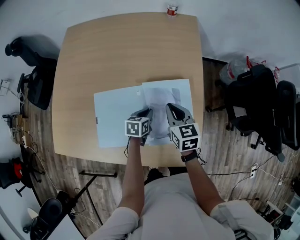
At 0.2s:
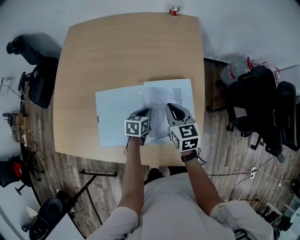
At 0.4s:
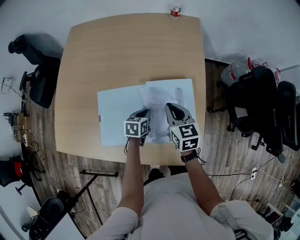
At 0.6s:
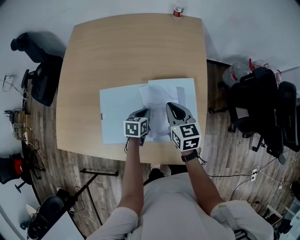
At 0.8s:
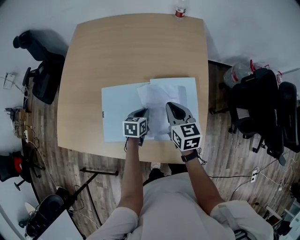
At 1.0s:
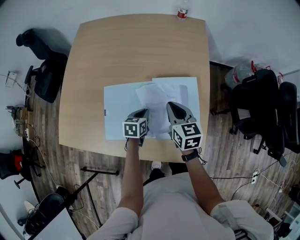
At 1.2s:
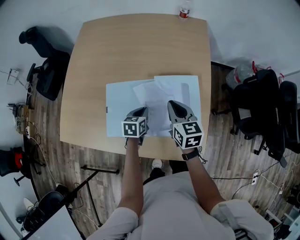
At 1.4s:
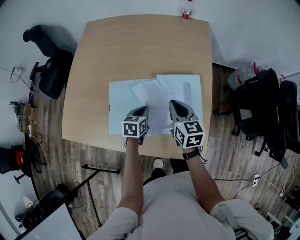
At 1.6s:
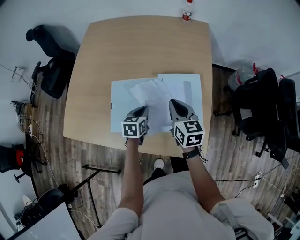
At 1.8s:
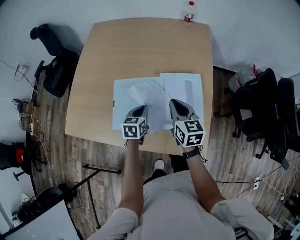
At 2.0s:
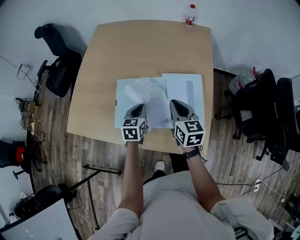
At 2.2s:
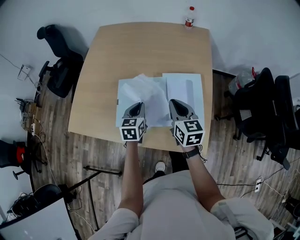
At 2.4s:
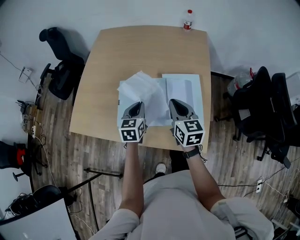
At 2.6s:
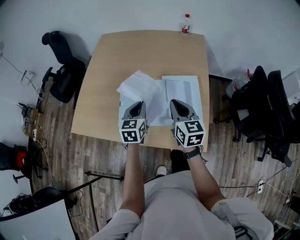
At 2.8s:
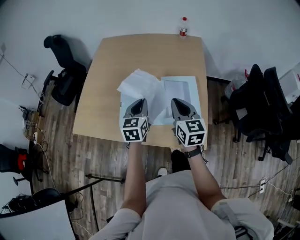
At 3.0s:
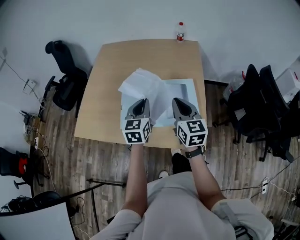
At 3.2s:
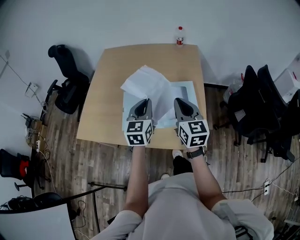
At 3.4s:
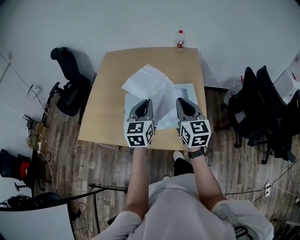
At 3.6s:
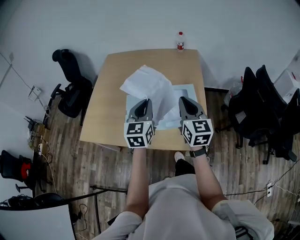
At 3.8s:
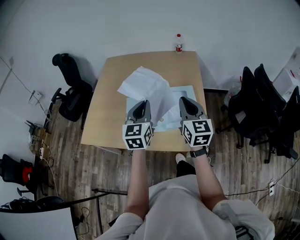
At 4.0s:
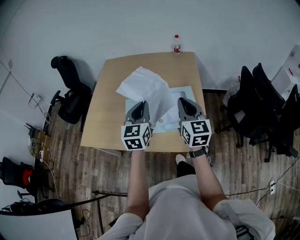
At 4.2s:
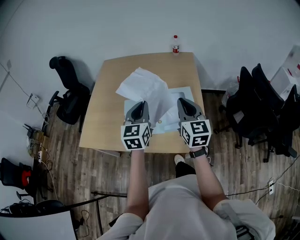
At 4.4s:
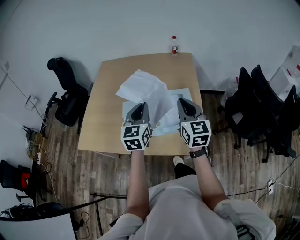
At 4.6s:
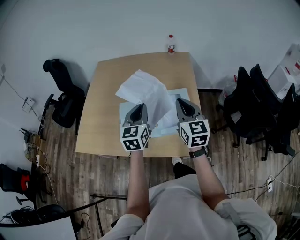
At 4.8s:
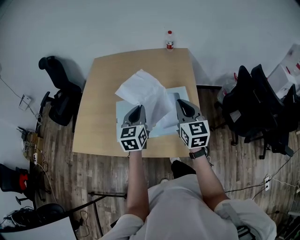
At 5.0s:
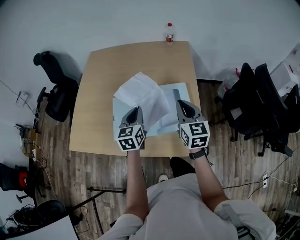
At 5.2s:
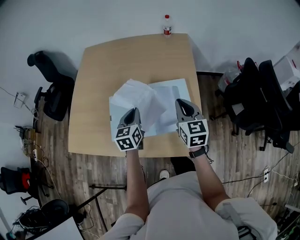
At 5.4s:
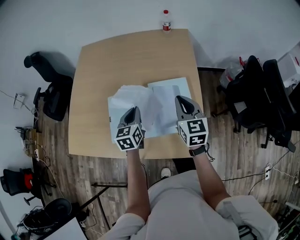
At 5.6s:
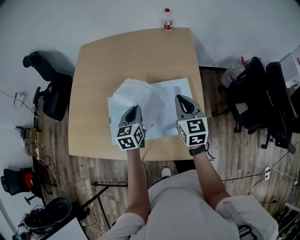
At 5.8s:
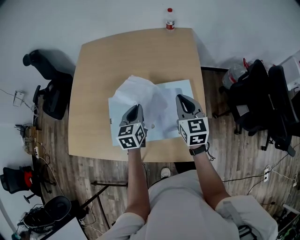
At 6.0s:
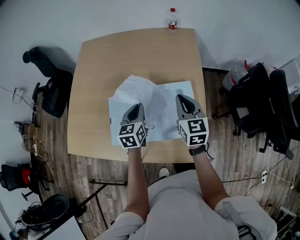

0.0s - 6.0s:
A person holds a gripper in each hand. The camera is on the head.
0.0s - 1.6s: The right gripper heads backward and upward, covering approximately 10 cm. The left gripper is displaced to the left, upward and backward by roughly 10 cm.
1.6s - 3.0s: The left gripper heads upward, covering some 20 cm, and turns by roughly 30 degrees. The right gripper travels upward and backward by roughly 15 cm.
3.0s - 4.4s: The two grippers go about 5 cm upward.
4.4s - 6.0s: The right gripper moves forward and downward, approximately 20 cm; the left gripper goes some 20 cm downward and forward, and rotates about 20 degrees.

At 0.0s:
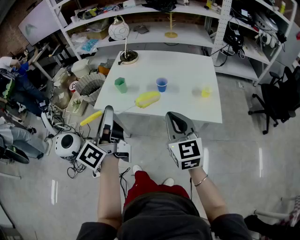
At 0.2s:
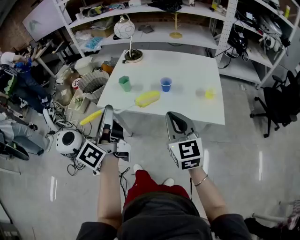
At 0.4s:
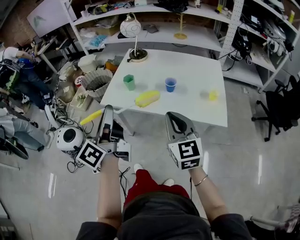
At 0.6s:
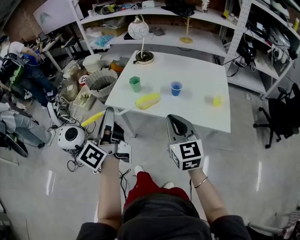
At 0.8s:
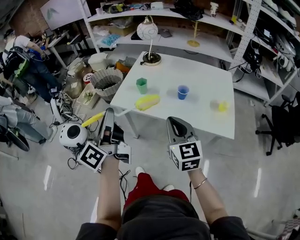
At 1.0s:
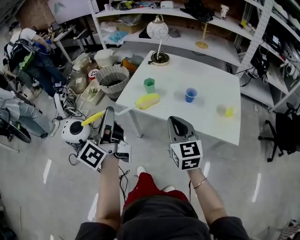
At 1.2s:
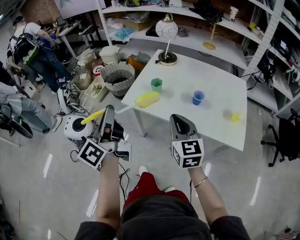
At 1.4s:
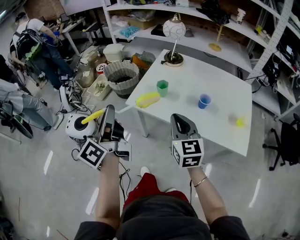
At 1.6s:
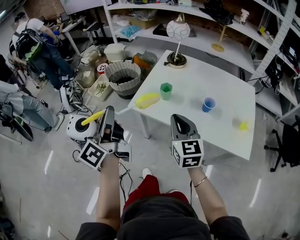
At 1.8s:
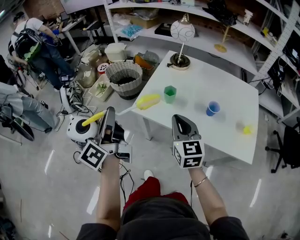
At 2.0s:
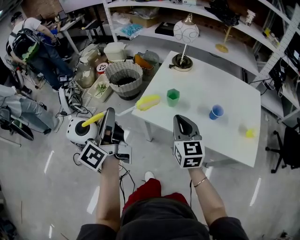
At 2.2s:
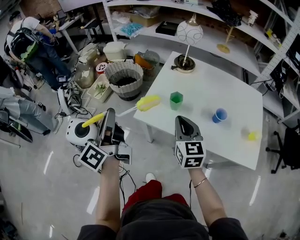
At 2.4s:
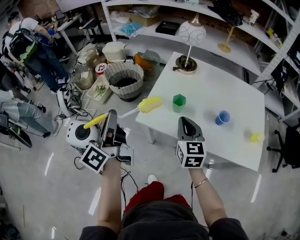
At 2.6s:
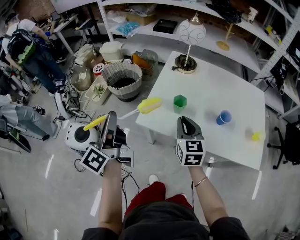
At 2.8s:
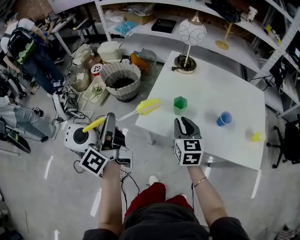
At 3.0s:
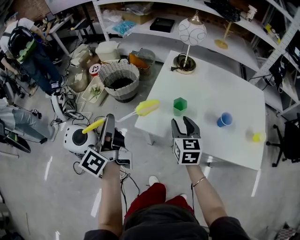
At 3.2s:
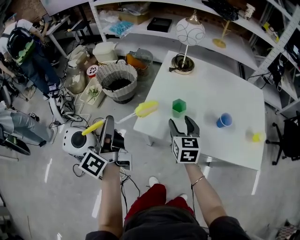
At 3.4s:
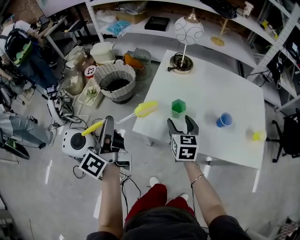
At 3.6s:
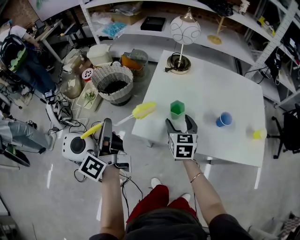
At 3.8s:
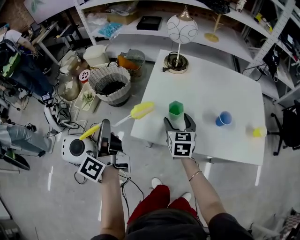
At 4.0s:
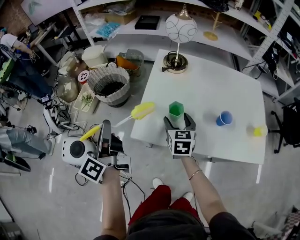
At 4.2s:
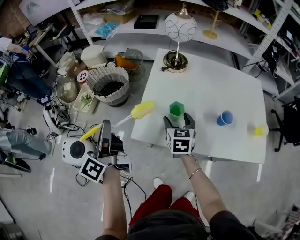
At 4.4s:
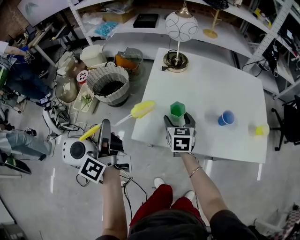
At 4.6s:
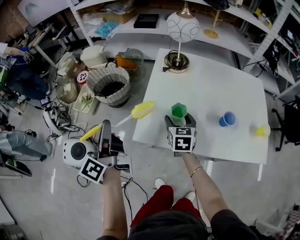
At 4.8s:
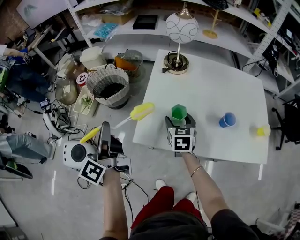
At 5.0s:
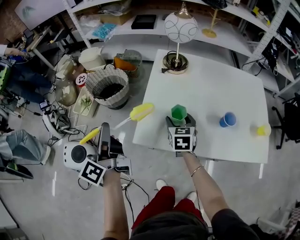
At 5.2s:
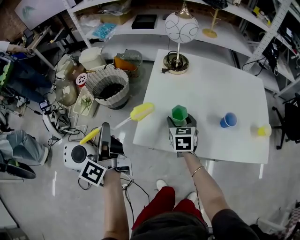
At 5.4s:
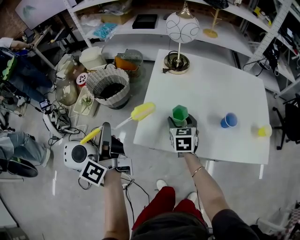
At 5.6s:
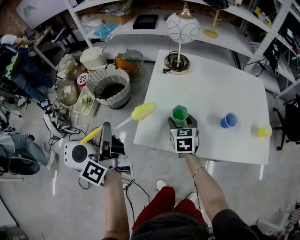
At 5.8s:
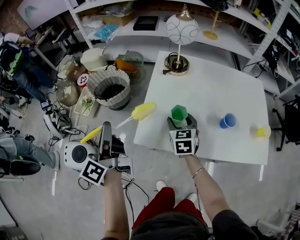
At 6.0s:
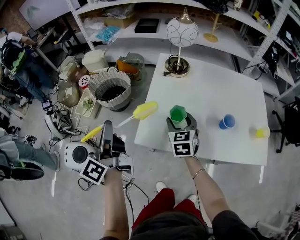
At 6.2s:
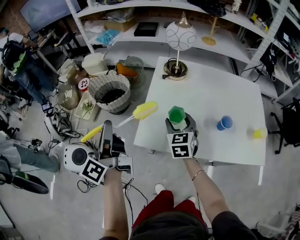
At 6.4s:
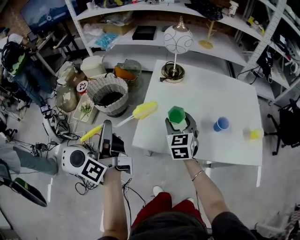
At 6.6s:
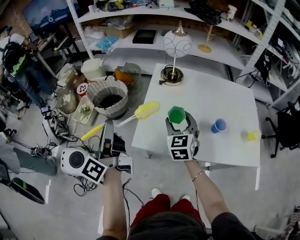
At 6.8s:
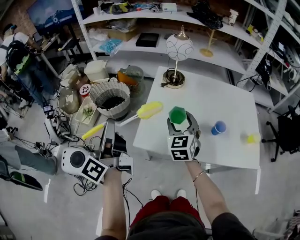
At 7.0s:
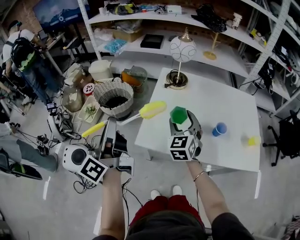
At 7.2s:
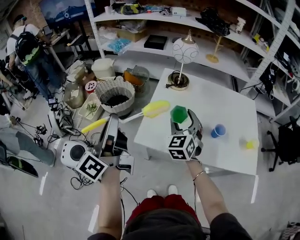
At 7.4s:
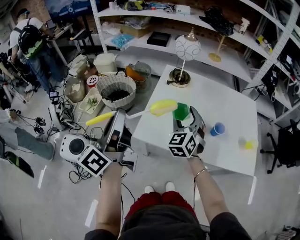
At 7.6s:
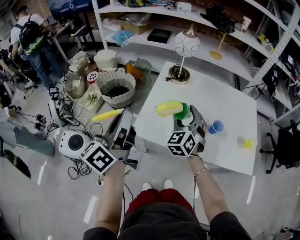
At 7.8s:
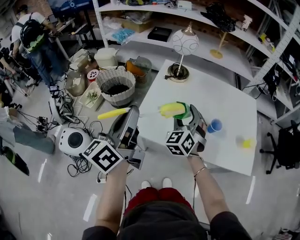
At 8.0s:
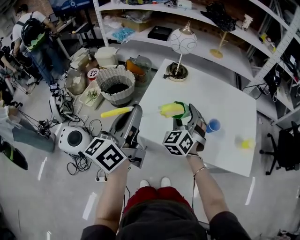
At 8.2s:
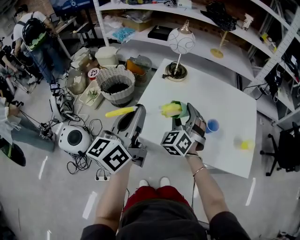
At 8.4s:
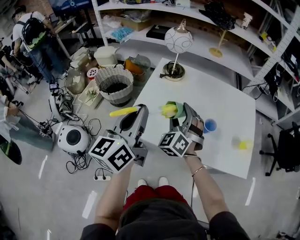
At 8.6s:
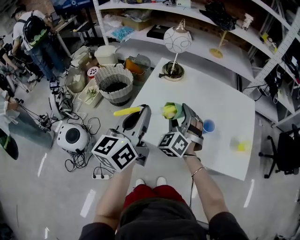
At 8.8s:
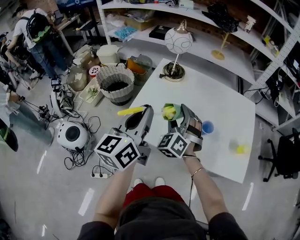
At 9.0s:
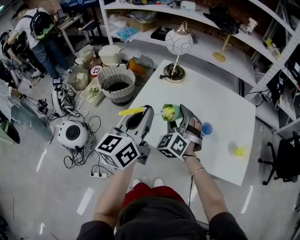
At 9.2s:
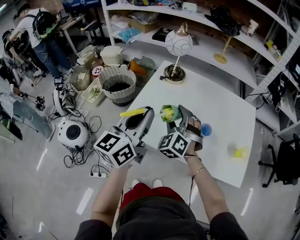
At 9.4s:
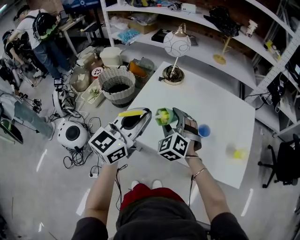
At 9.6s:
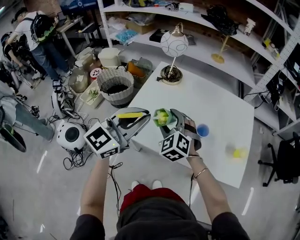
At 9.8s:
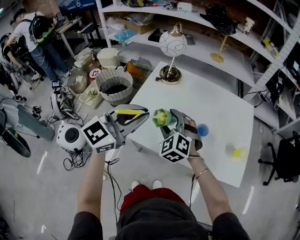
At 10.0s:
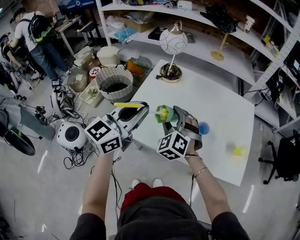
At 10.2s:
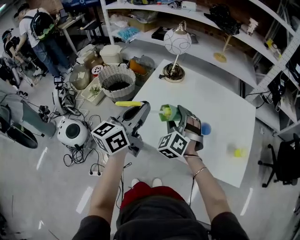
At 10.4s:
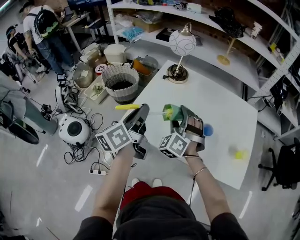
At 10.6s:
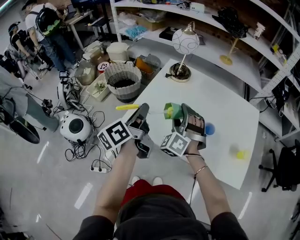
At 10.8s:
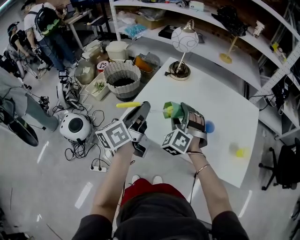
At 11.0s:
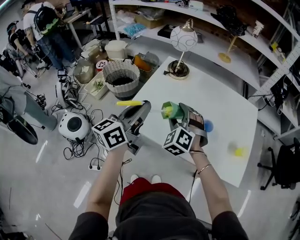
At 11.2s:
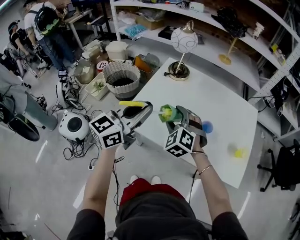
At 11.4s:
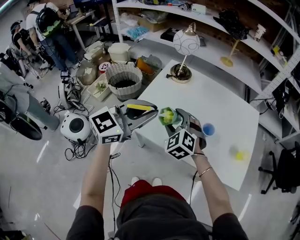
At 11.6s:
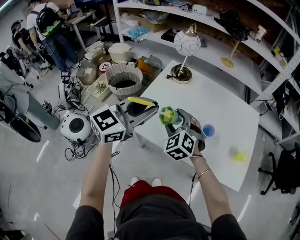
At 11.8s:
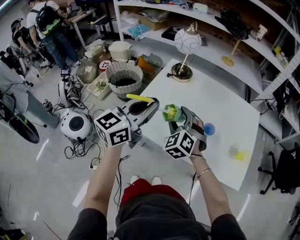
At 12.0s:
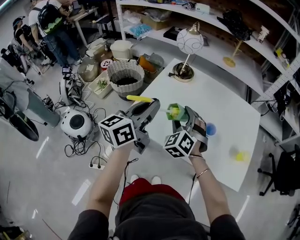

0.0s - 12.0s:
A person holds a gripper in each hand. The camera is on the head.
0.0s - 1.6s: The grippers both shift to the left and forward by some 20 cm.
1.6s - 3.0s: The left gripper travels forward, to the left and downward by roughly 15 cm. Meanwhile the right gripper is displaced forward and downward by about 20 cm, and opens up.
3.0s - 4.4s: The left gripper is displaced forward by about 5 cm, while the right gripper is displaced downward and forward by some 10 cm, and opens.
4.4s - 6.0s: The grippers stay close to where they were, moving slightly.
6.0s - 7.6s: The left gripper heads upward, to the right and backward, covering approximately 15 cm. The right gripper heads upward, covering about 10 cm, and swivels approximately 30 degrees.
7.6s - 9.0s: The left gripper goes roughly 15 cm to the right, and swivels about 30 degrees.
9.0s - 10.4s: The left gripper heads downward, covering approximately 5 cm, and rotates some 20 degrees.
10.4s - 12.0s: The left gripper changes its angle by some 20 degrees.

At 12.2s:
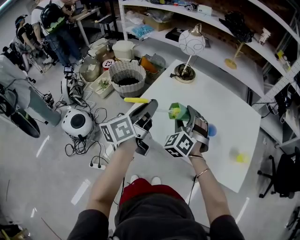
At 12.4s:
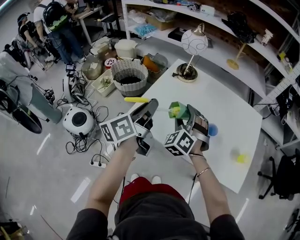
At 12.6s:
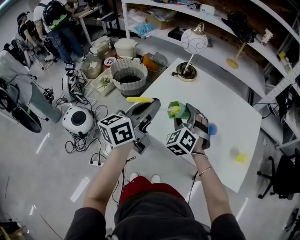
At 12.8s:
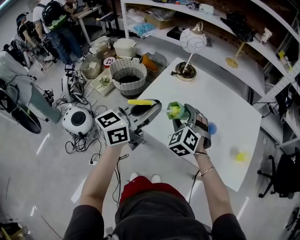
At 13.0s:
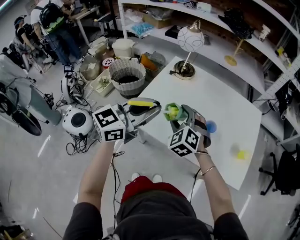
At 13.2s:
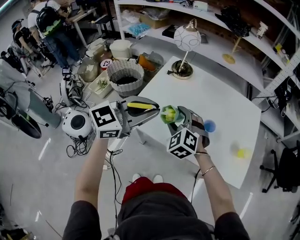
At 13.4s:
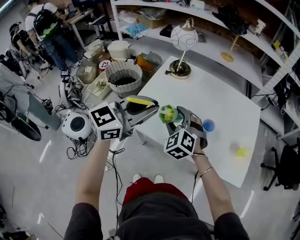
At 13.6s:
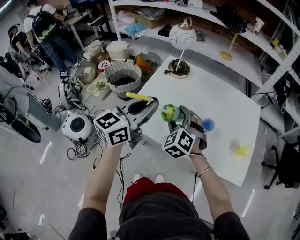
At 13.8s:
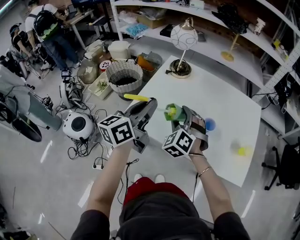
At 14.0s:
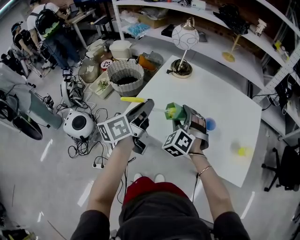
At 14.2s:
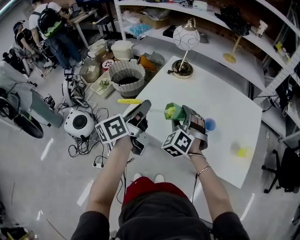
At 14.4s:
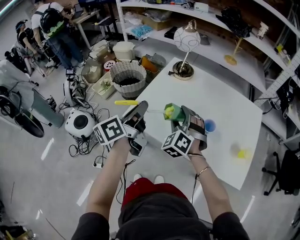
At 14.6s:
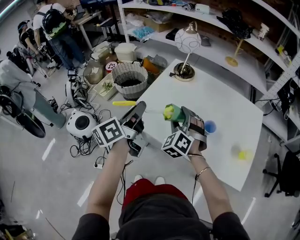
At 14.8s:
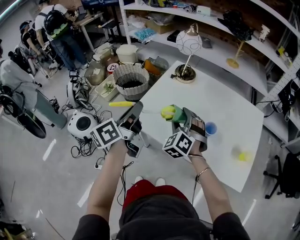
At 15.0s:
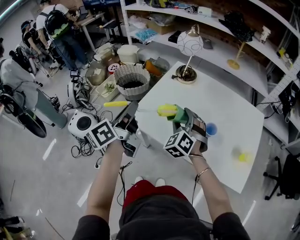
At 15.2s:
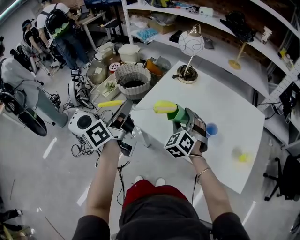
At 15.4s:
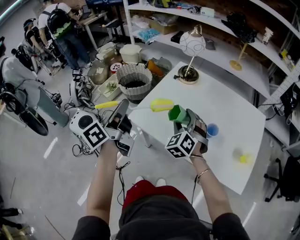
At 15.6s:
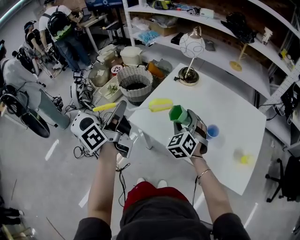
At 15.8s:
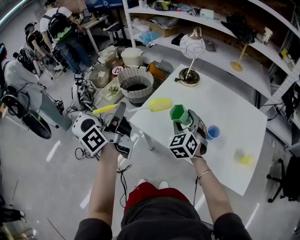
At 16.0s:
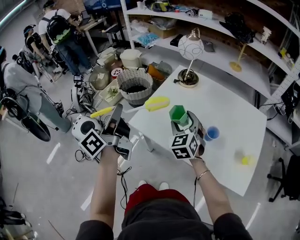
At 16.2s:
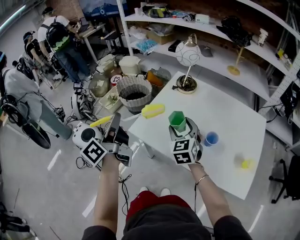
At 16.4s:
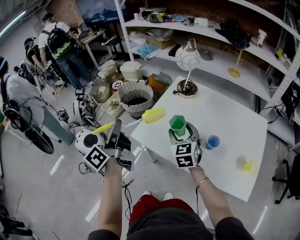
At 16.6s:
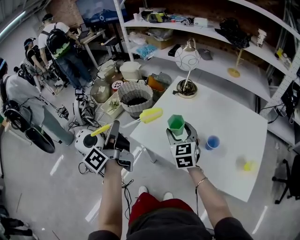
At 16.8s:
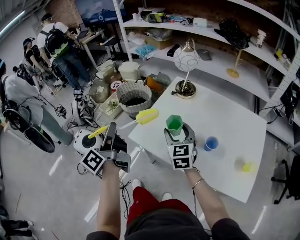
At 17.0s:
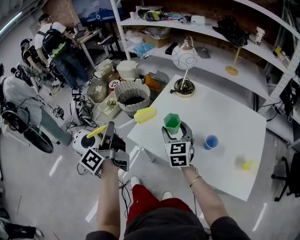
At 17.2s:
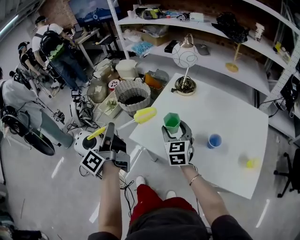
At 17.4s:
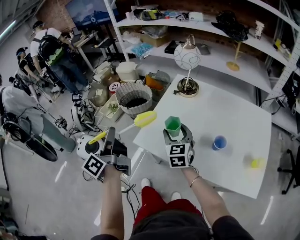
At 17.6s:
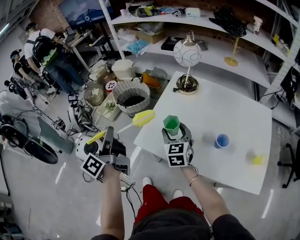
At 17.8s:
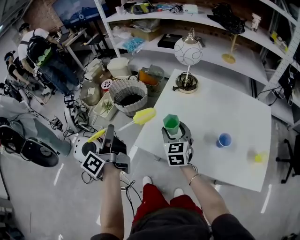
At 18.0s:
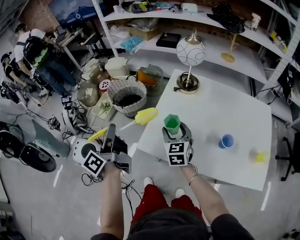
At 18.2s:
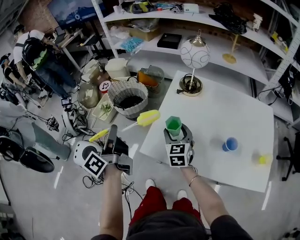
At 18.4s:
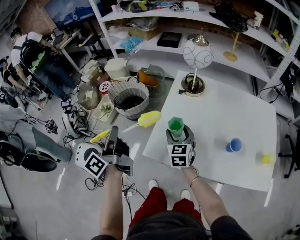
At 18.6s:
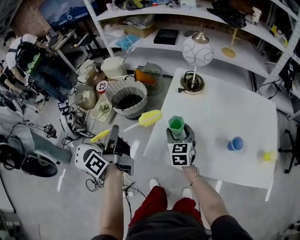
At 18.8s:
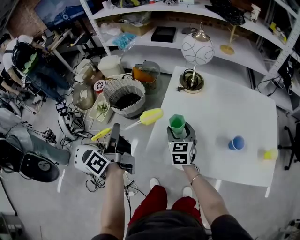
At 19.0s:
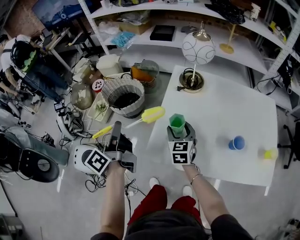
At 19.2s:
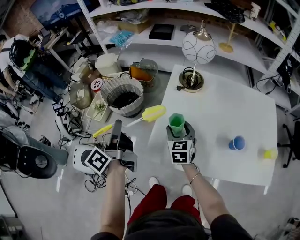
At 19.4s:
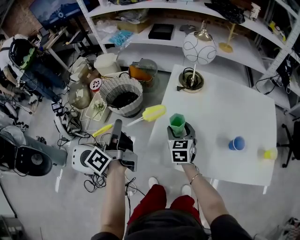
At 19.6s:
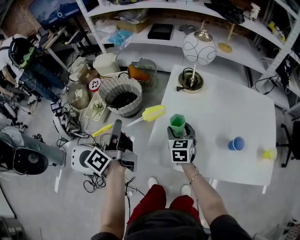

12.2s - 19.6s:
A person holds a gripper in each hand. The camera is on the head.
12.2s - 13.6s: The left gripper rotates some 40 degrees.
13.6s - 15.2s: The left gripper moves to the left, some 10 cm, and rotates roughly 50 degrees.
15.2s - 16.6s: The left gripper moves roughly 5 cm; the right gripper rotates some 40 degrees.
16.6s - 18.2s: The right gripper travels forward, downward and to the left by roughly 15 cm. The left gripper travels forward and to the left by some 15 cm.
18.2s - 19.6s: The left gripper is displaced forward by some 10 cm, while the right gripper shifts roughly 5 cm downward.
